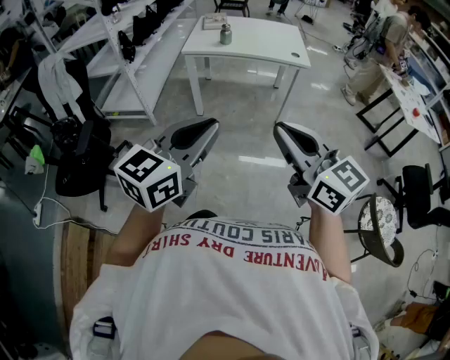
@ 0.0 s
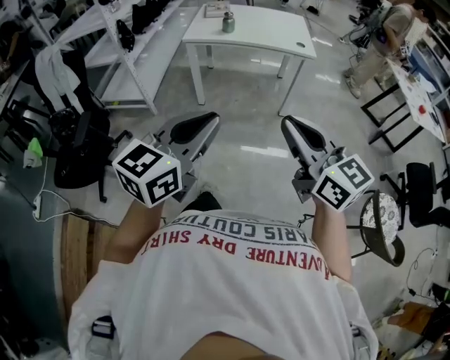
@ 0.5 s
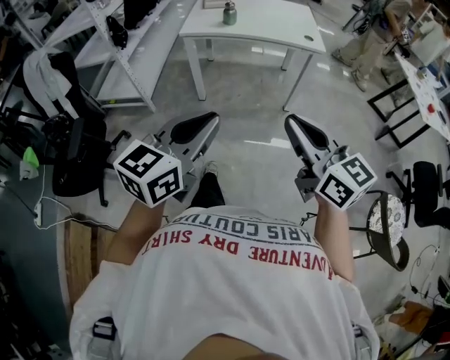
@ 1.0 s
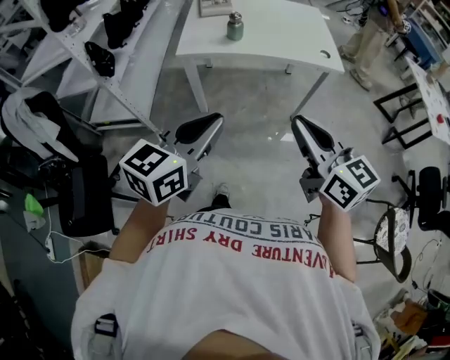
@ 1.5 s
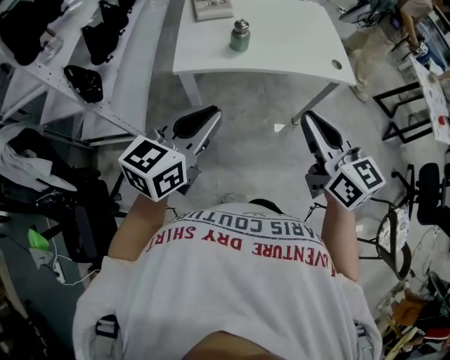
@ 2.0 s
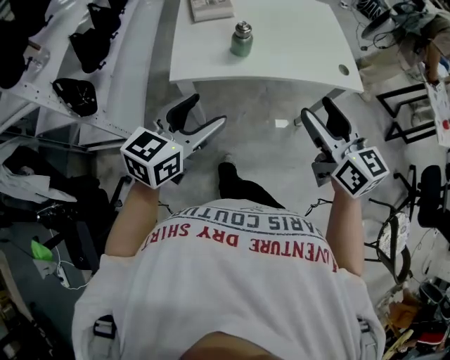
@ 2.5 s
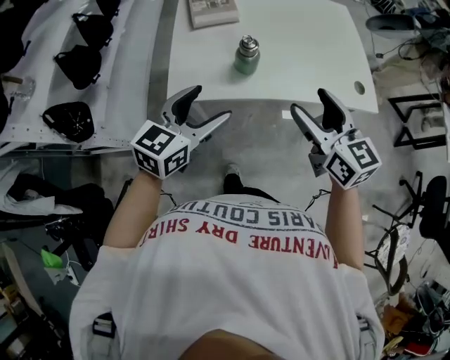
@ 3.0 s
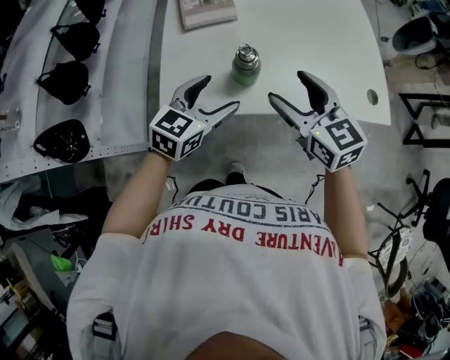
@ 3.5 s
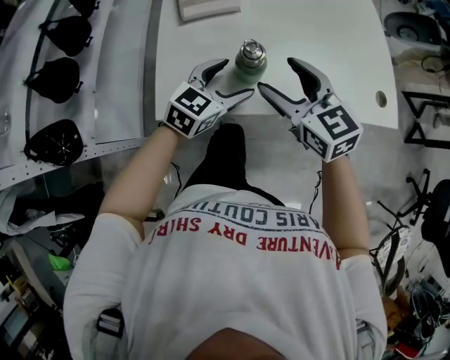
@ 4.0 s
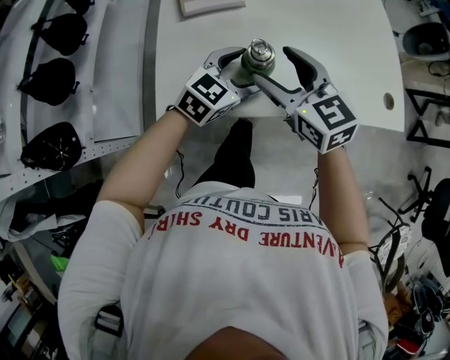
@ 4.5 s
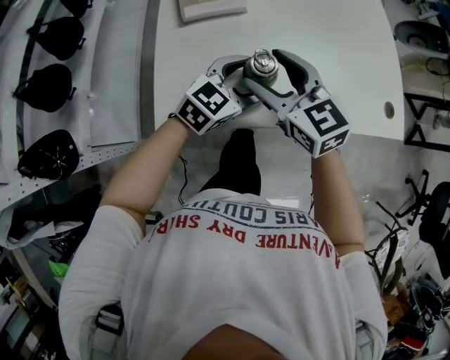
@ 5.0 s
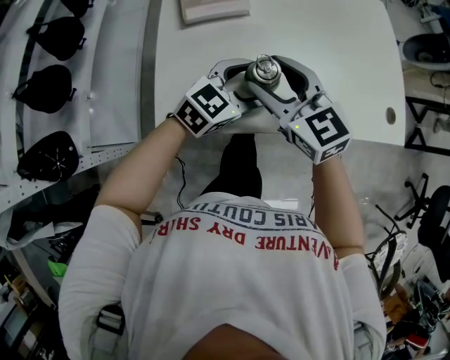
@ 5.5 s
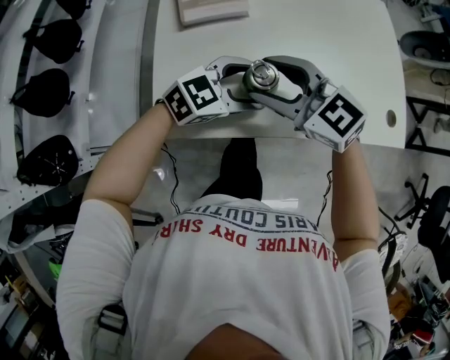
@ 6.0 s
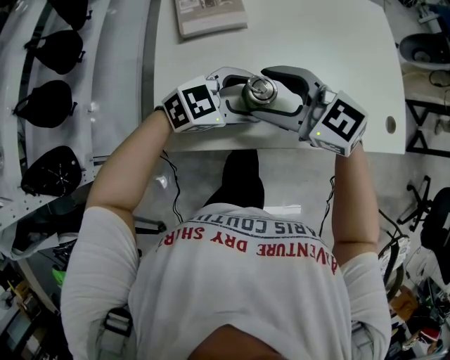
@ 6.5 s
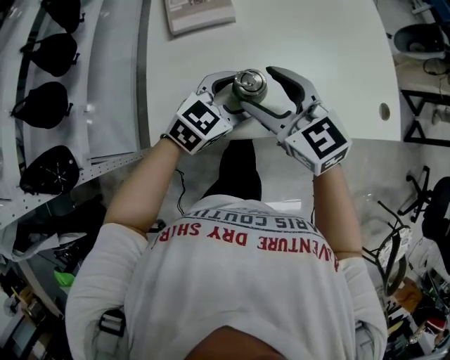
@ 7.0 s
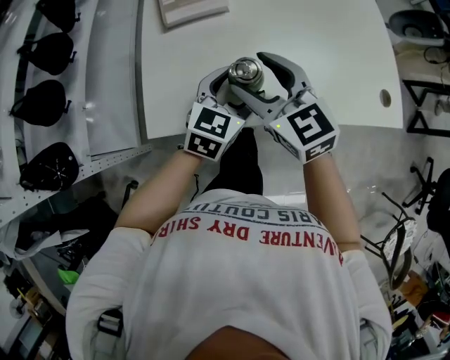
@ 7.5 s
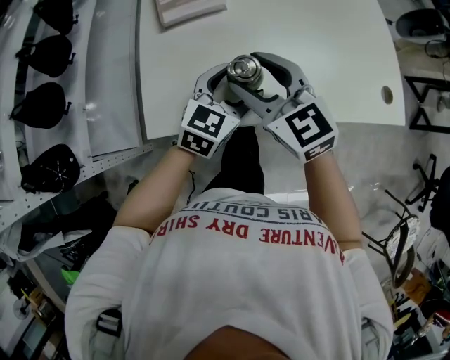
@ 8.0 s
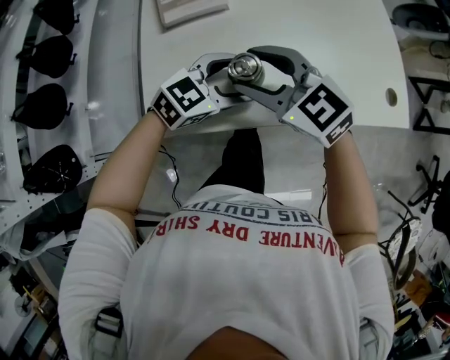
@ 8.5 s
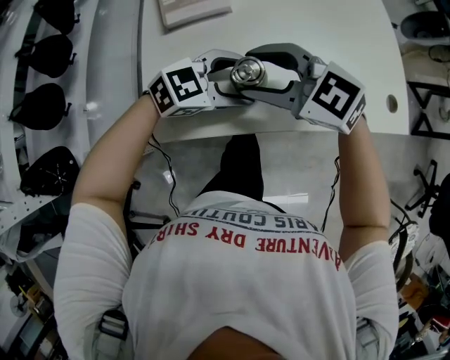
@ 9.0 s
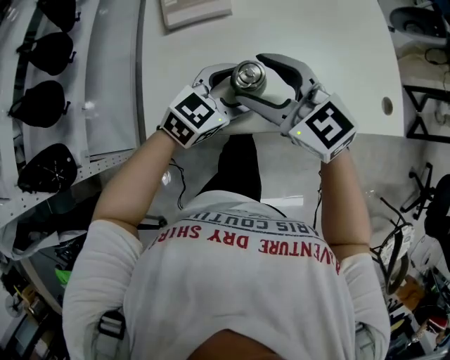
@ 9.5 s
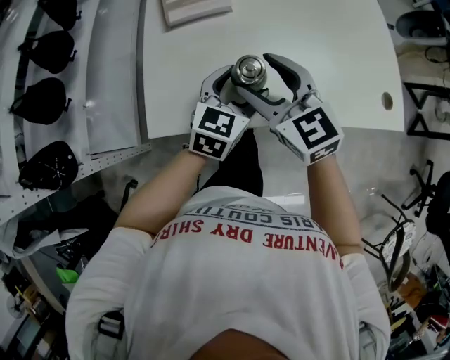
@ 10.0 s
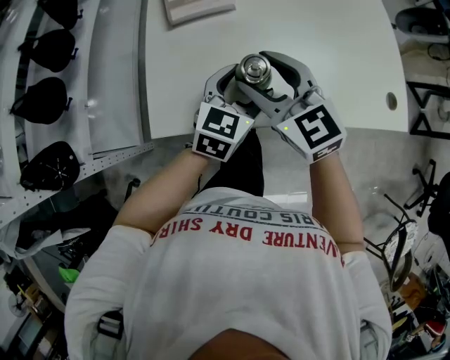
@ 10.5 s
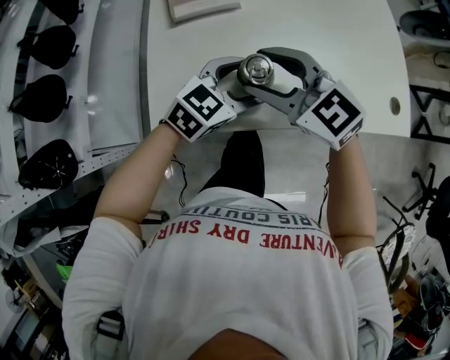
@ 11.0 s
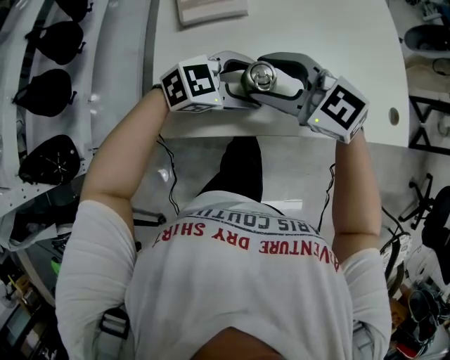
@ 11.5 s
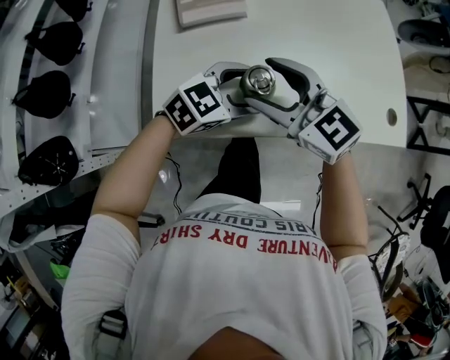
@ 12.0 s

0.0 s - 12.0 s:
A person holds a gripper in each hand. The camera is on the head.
0.0 s - 2.0 s: The two grippers travel together, forward, roughly 50 cm. The right gripper swivels roughly 20 degrees.
2.0 s - 4.0 s: Both grippers travel together forward and downward, about 40 cm. The left gripper turns by approximately 20 degrees, and opens its fingers; the right gripper opens its fingers.
4.0 s - 6.0 s: The left gripper rotates some 30 degrees; the right gripper changes place by some 5 cm, and rotates about 20 degrees.
6.0 s - 8.0 s: The left gripper swivels about 30 degrees. Meanwhile the right gripper swivels some 20 degrees.
10.0 s - 12.0 s: The left gripper turns by about 30 degrees.

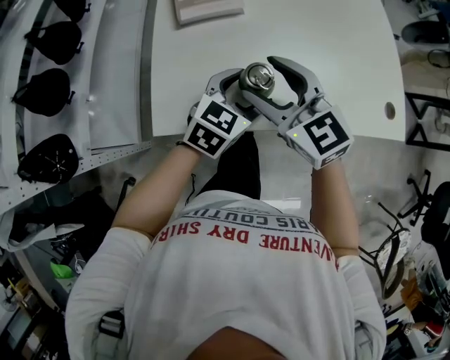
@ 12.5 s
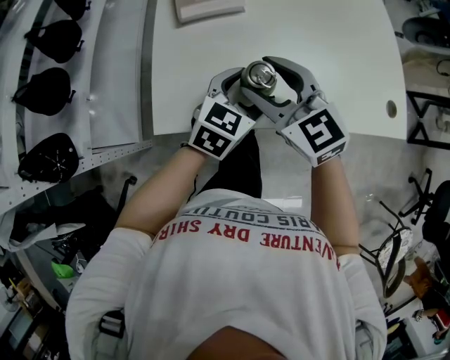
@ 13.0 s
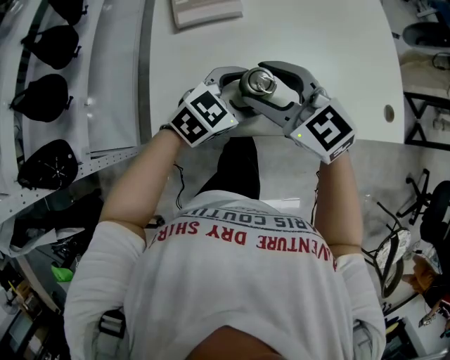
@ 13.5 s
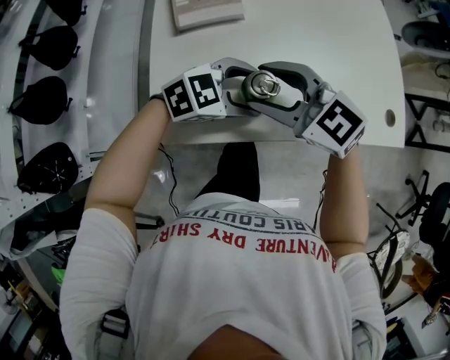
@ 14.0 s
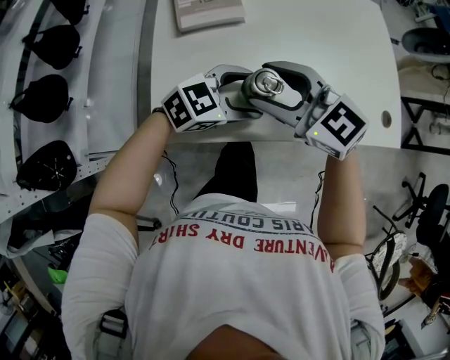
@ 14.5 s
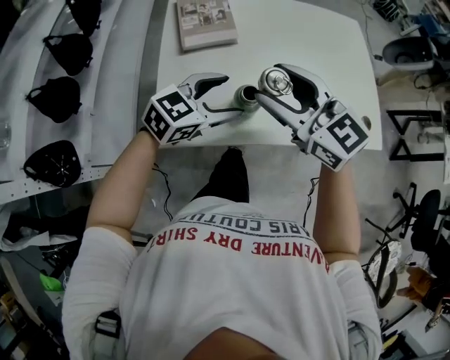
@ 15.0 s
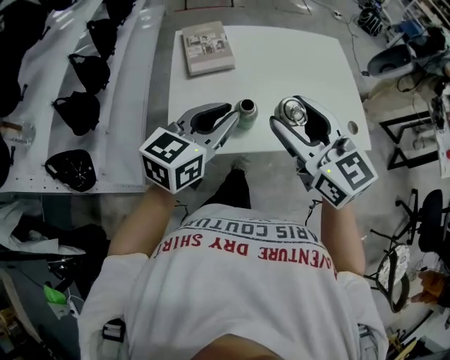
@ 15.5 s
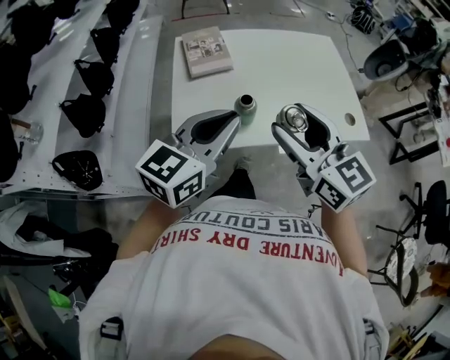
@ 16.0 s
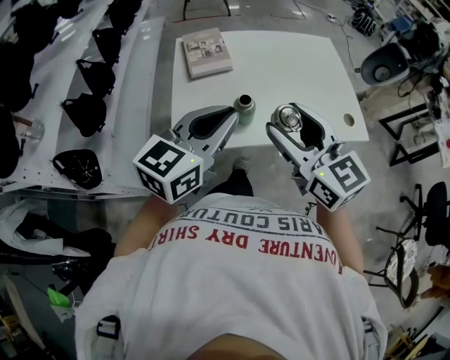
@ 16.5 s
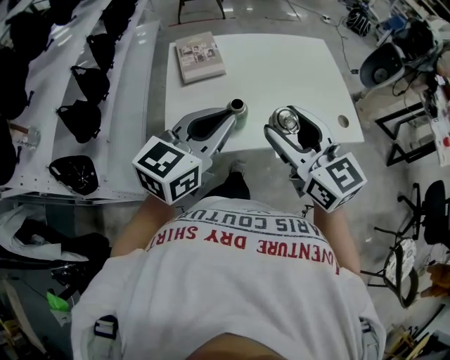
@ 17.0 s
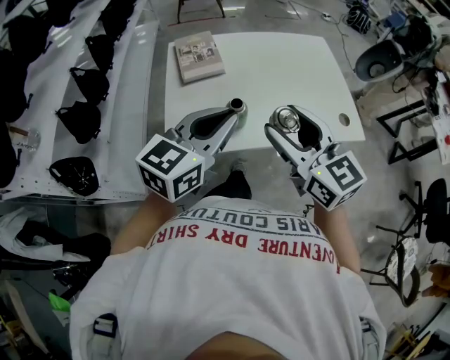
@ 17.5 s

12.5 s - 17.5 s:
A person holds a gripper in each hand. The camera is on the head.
12.5 s - 15.0 s: The grippers both shift upward by roughly 10 cm.
15.0 s - 17.5 s: The right gripper travels backward, upward and to the right by roughly 15 cm. Meanwhile the left gripper moves upward and backward, about 20 cm, turns by roughly 20 degrees, and closes its fingers.

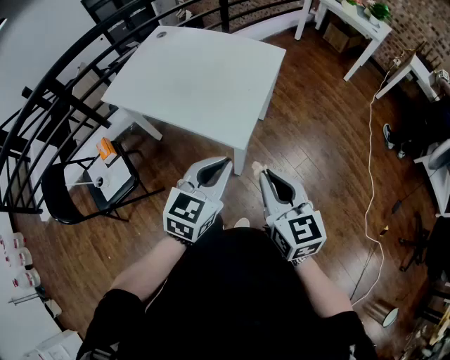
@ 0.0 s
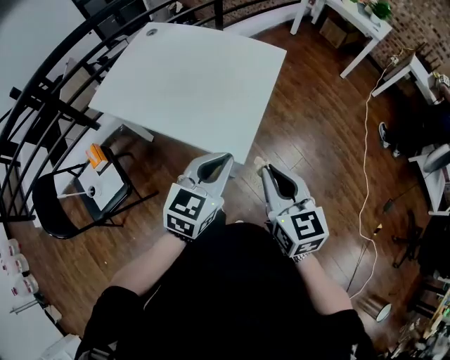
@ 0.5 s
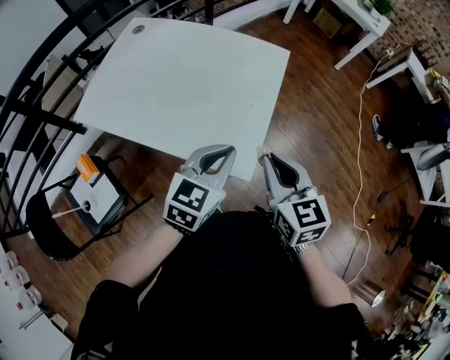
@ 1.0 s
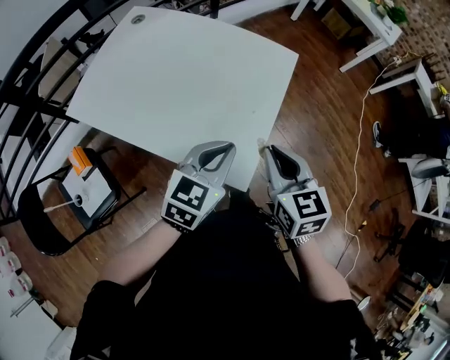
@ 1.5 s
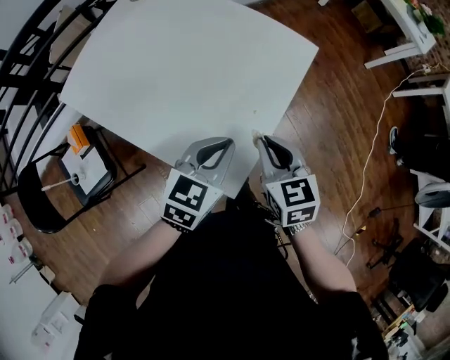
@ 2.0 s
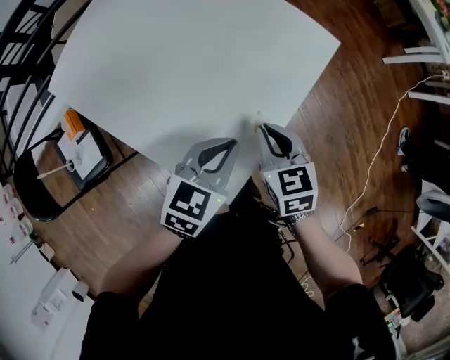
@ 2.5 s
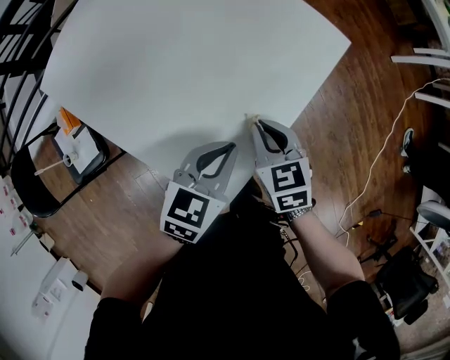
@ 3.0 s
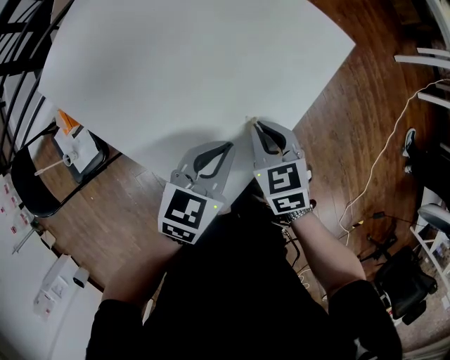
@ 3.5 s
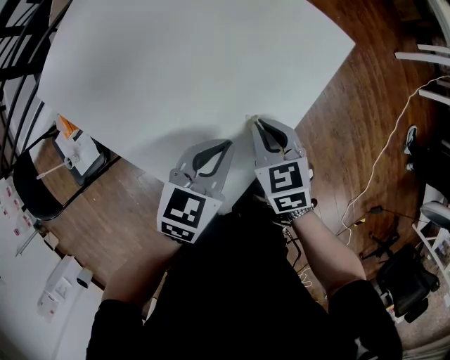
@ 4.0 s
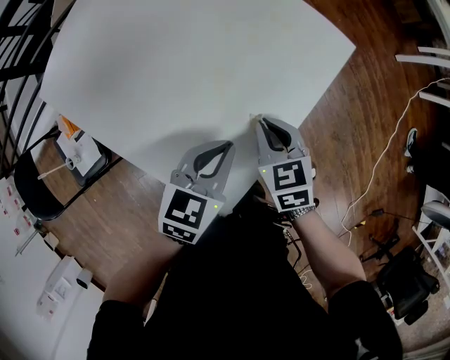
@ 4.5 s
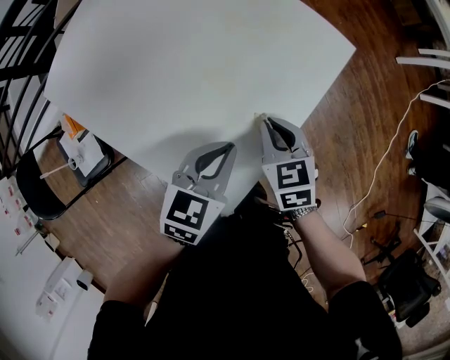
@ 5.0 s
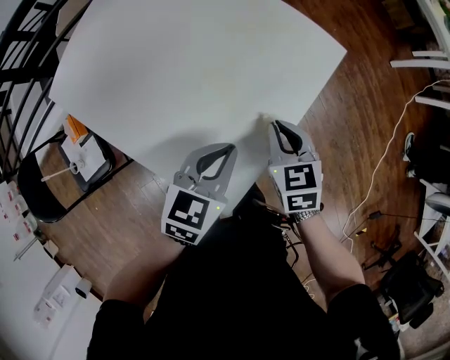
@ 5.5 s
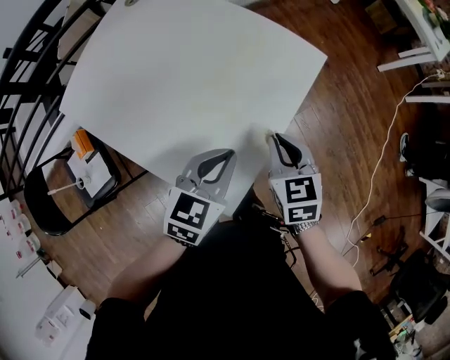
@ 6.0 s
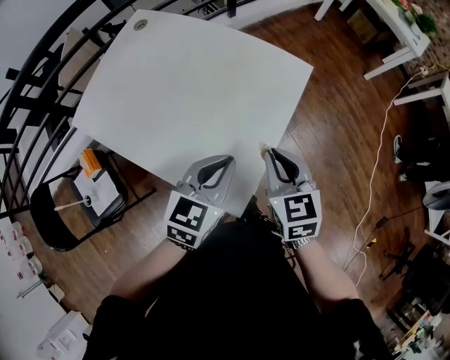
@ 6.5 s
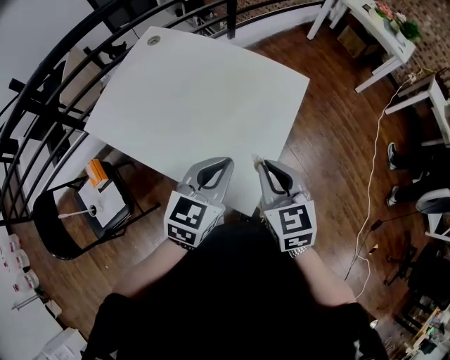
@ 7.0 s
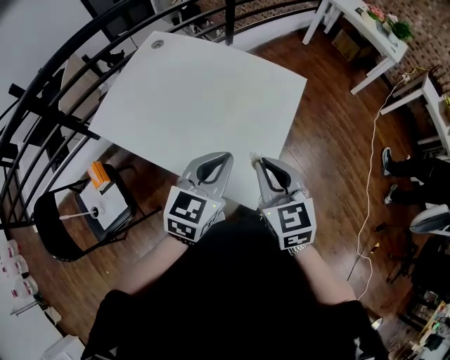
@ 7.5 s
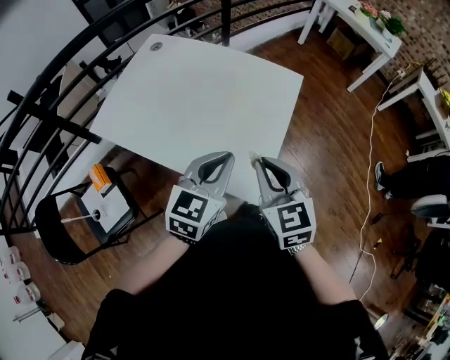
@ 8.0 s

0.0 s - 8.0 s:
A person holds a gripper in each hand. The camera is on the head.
0.0 s - 2.0 s: The two grippers go roughly 30 cm forward. The right gripper swivels approximately 20 degrees.
2.0 s - 4.0 s: Both grippers move downward and forward, roughly 15 cm.
4.0 s - 6.0 s: Both grippers travel together upward, roughly 10 cm.
6.0 s - 8.0 s: The left gripper goes roughly 15 cm upward, backward and to the left. The right gripper heads backward, upward and to the left, covering roughly 25 cm.

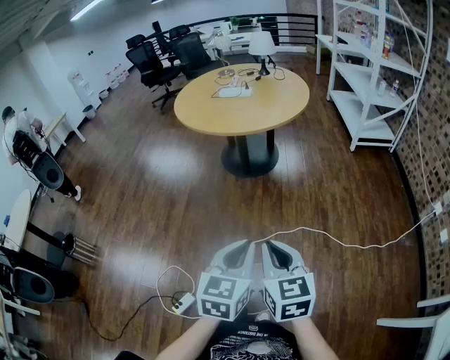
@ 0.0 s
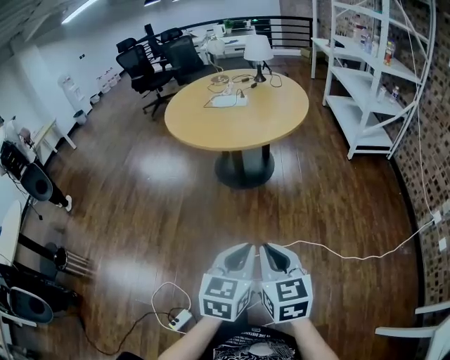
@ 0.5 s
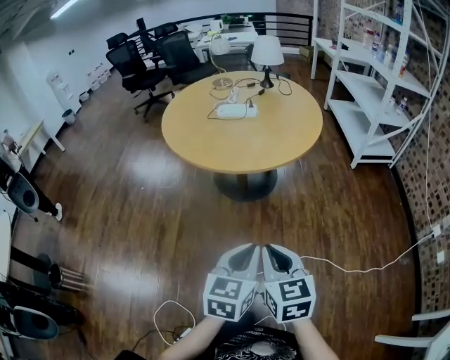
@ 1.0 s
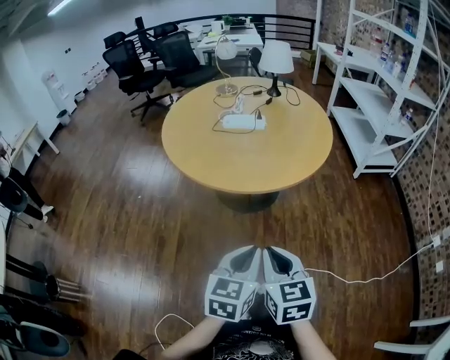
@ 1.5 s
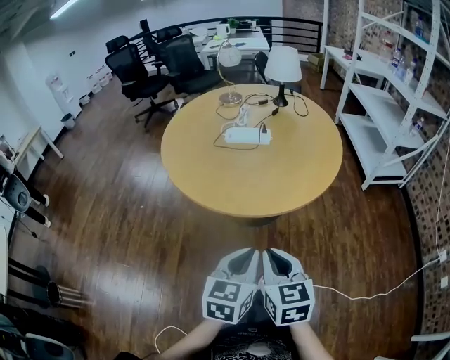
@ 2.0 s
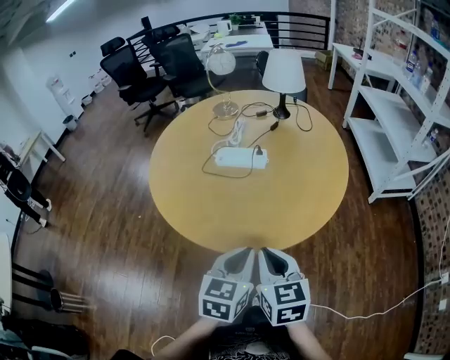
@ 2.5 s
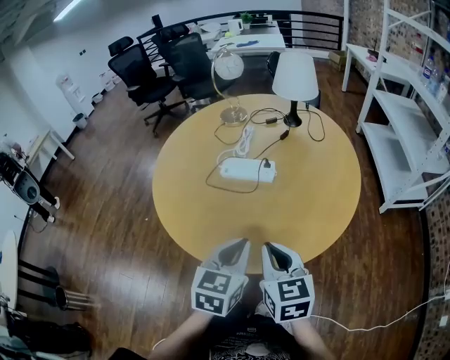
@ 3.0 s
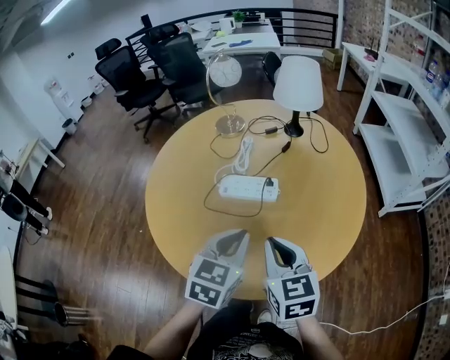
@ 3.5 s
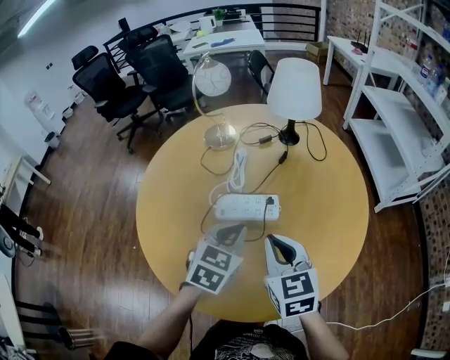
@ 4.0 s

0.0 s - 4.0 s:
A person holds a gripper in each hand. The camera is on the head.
0.0 s - 2.0 s: Both grippers are carried forward, approximately 50 cm.
2.0 s - 4.0 s: The pair of grippers is taken forward, about 50 cm. The left gripper changes its angle by some 20 degrees.
